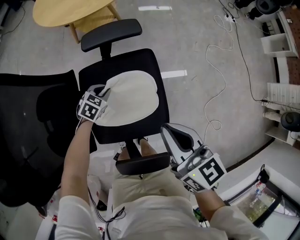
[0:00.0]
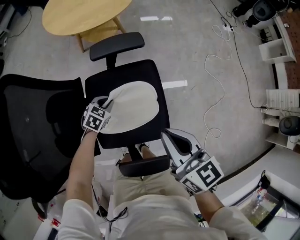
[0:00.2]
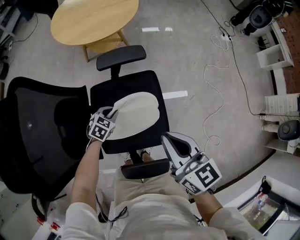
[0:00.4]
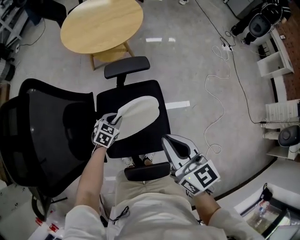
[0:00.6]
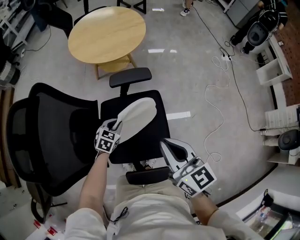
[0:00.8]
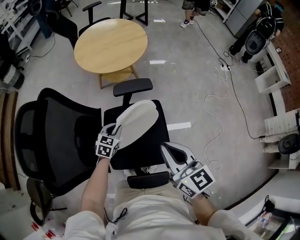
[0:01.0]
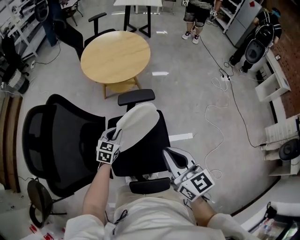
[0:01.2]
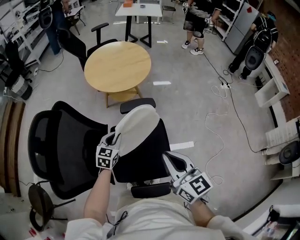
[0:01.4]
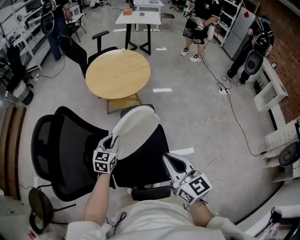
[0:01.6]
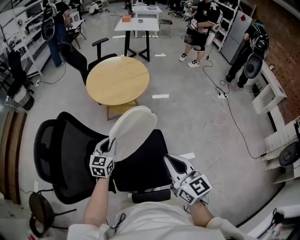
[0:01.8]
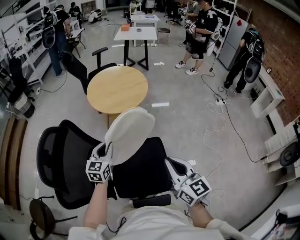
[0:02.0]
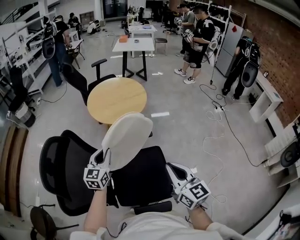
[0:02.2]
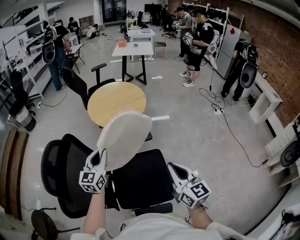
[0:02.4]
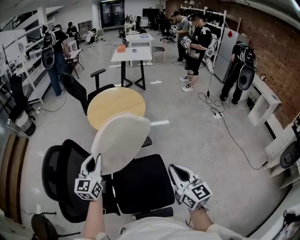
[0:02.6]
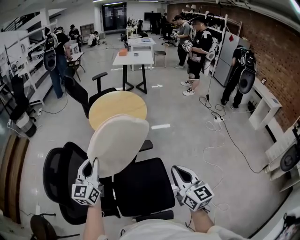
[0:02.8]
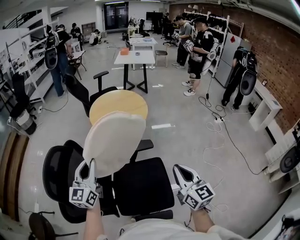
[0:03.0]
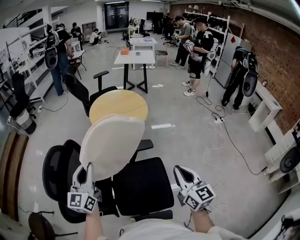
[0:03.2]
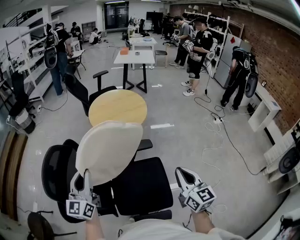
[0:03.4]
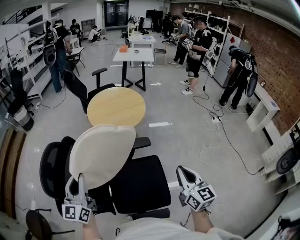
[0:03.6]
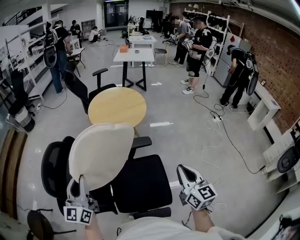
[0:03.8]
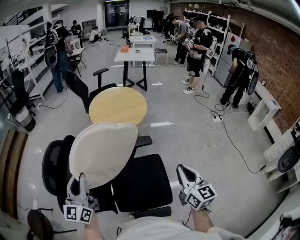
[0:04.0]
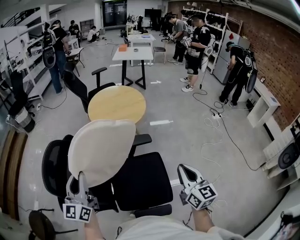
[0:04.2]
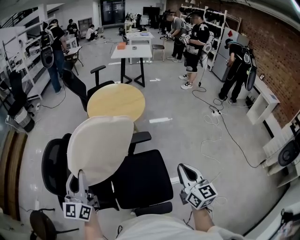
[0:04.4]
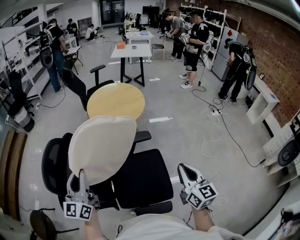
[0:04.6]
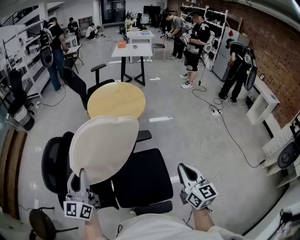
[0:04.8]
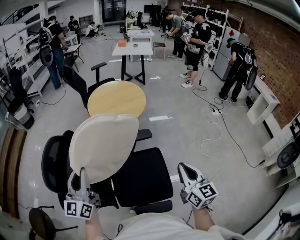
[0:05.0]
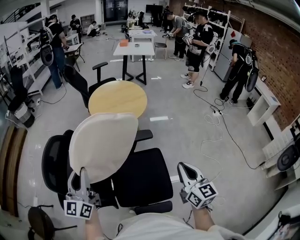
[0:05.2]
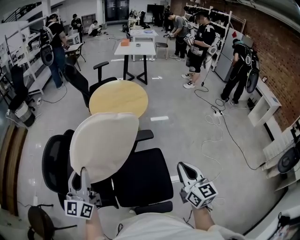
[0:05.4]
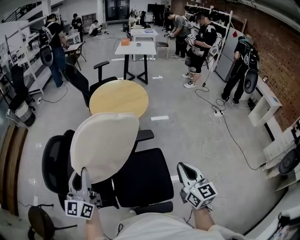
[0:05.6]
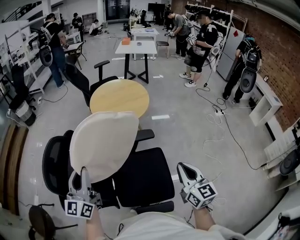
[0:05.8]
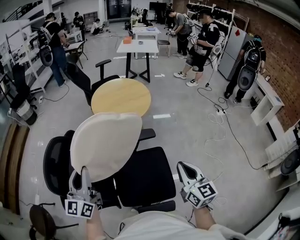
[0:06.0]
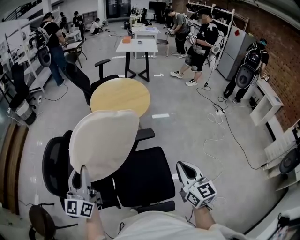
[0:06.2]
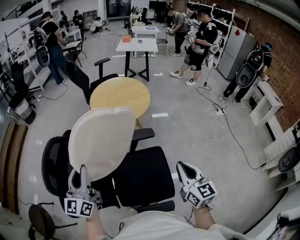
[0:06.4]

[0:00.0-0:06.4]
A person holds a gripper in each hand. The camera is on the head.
0:00.0 to 0:01.6: The right gripper shifts roughly 15 cm upward. The left gripper moves upward, some 30 cm, and angles its fingers upward, by roughly 30 degrees.
0:01.6 to 0:03.2: The left gripper travels upward and to the left by roughly 25 cm, and points its fingers approximately 30 degrees further upward. Meanwhile the right gripper goes about 5 cm to the right.
0:03.2 to 0:04.8: The left gripper heads backward, covering some 5 cm.
0:04.8 to 0:06.4: The grippers stay close to where they were, moving slightly.

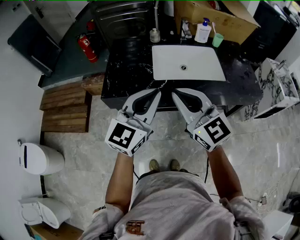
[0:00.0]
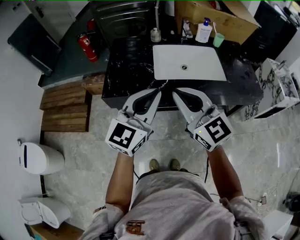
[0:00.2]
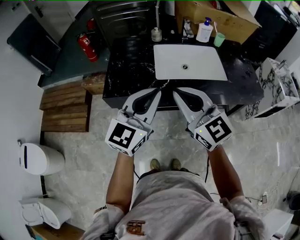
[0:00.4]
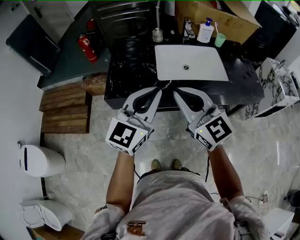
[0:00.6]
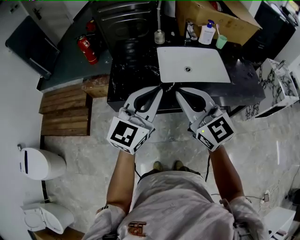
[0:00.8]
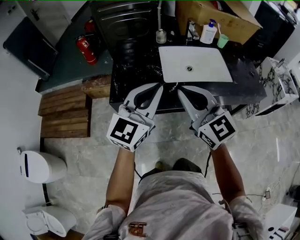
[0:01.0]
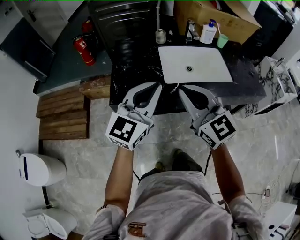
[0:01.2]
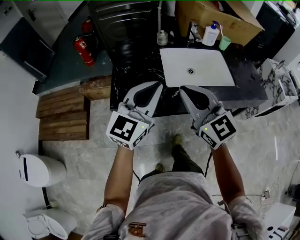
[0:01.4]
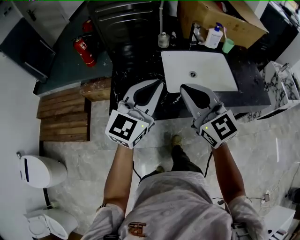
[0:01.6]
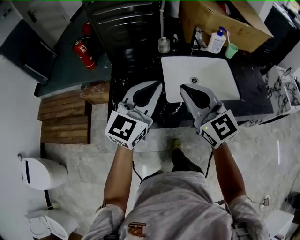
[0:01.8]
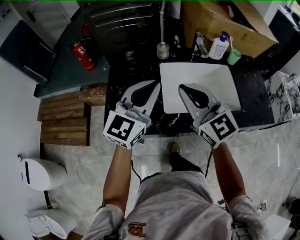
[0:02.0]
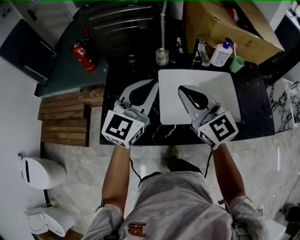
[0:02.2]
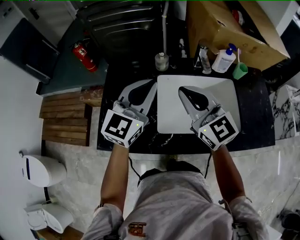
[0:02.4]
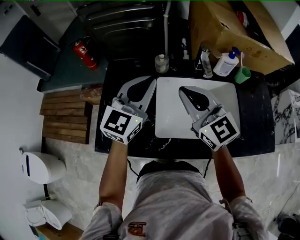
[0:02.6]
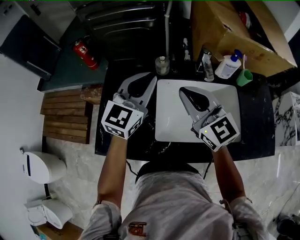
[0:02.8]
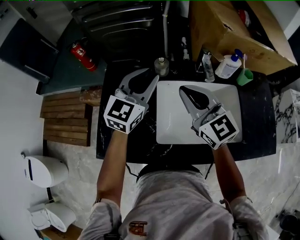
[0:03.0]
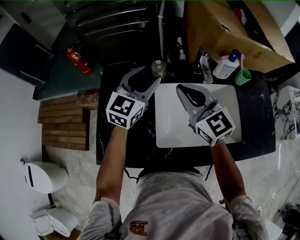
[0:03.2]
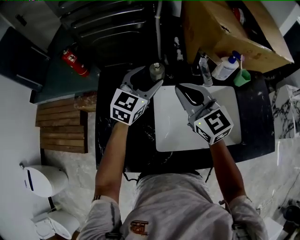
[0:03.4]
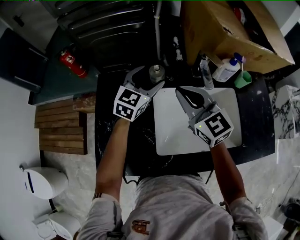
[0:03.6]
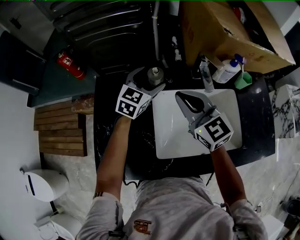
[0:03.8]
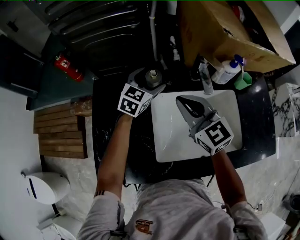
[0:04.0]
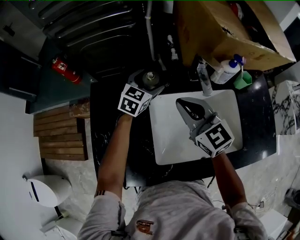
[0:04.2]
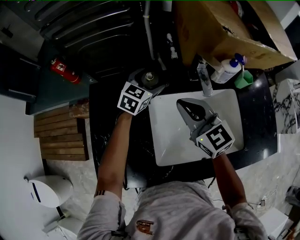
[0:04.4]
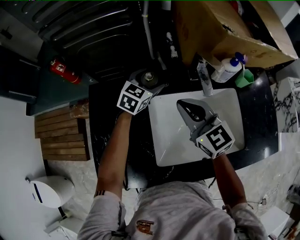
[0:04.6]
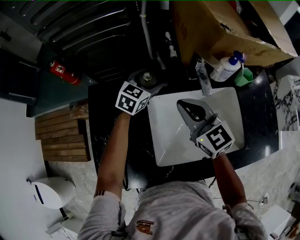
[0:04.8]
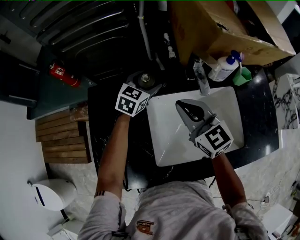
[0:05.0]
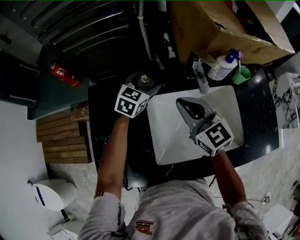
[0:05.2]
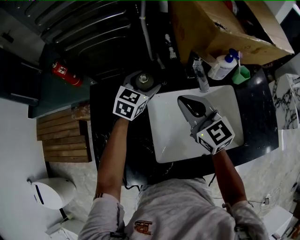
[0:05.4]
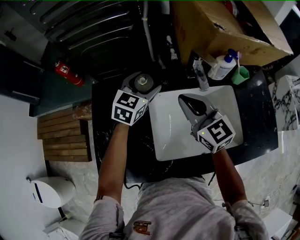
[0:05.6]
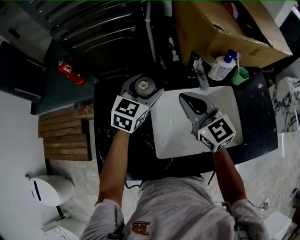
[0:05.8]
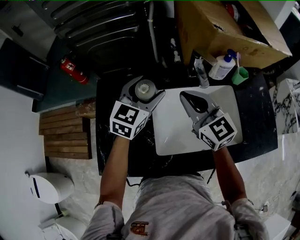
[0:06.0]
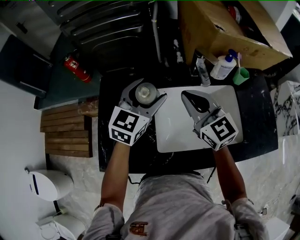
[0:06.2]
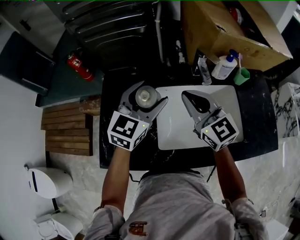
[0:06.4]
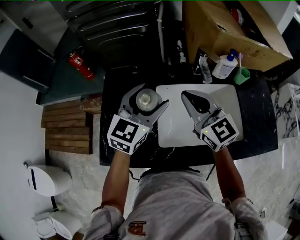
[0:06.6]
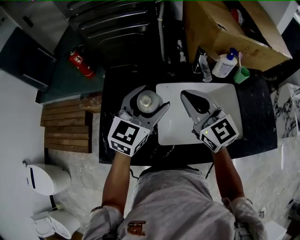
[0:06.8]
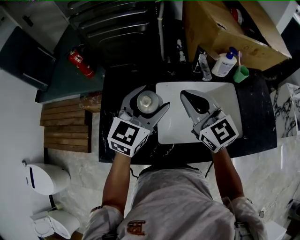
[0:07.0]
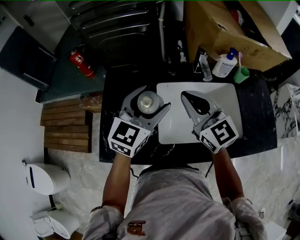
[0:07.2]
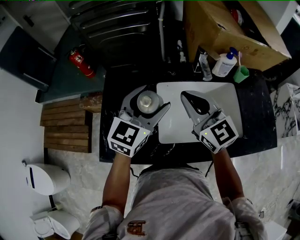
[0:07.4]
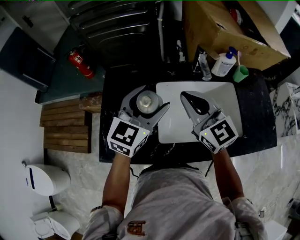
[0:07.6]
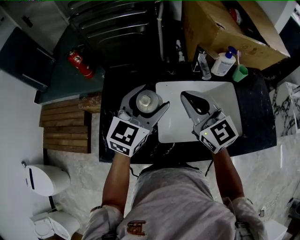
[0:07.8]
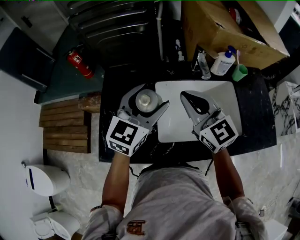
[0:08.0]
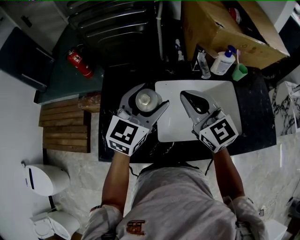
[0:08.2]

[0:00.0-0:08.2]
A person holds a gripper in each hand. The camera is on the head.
0:00.0 to 0:01.6: Both grippers travel together forward and to the left, about 15 cm.
0:01.6 to 0:03.2: Both grippers travel together forward, some 30 cm. The left gripper opens.
0:03.2 to 0:05.0: The left gripper moves downward and forward, some 20 cm, and swivels roughly 20 degrees. Meanwhile the right gripper travels downward by some 5 cm.
0:05.0 to 0:06.6: The right gripper heads backward and upward, covering approximately 10 cm; the left gripper goes roughly 25 cm backward and upward.
0:06.6 to 0:08.2: The grippers make only small movements.

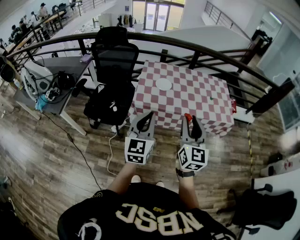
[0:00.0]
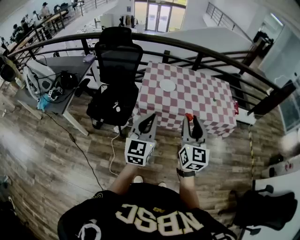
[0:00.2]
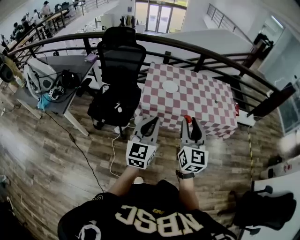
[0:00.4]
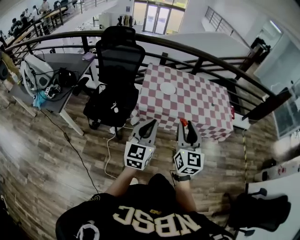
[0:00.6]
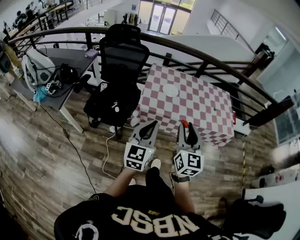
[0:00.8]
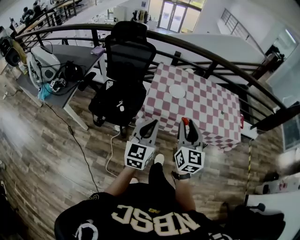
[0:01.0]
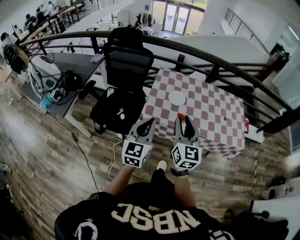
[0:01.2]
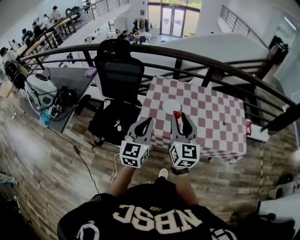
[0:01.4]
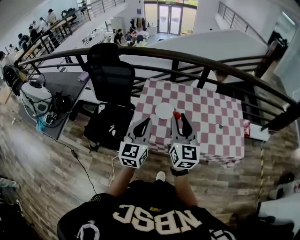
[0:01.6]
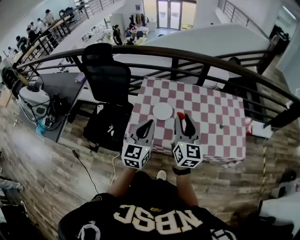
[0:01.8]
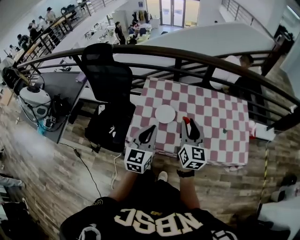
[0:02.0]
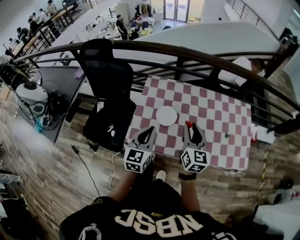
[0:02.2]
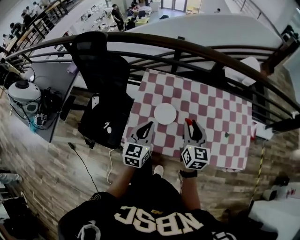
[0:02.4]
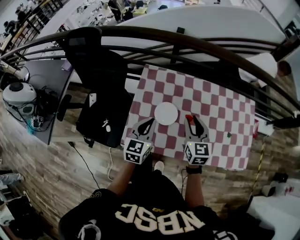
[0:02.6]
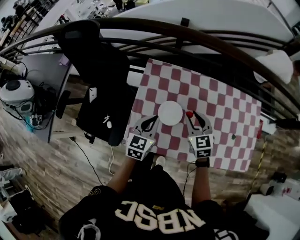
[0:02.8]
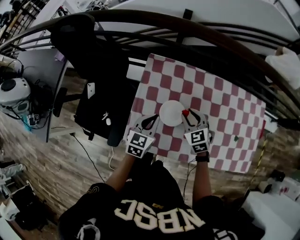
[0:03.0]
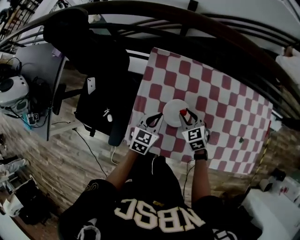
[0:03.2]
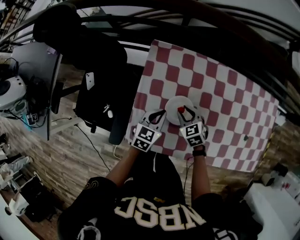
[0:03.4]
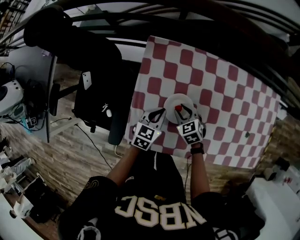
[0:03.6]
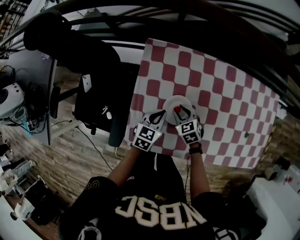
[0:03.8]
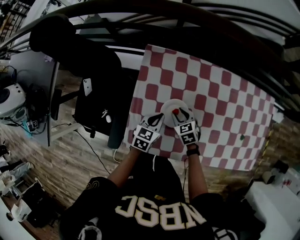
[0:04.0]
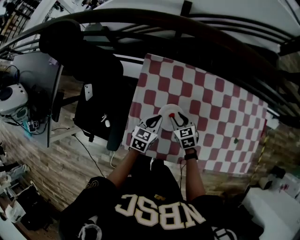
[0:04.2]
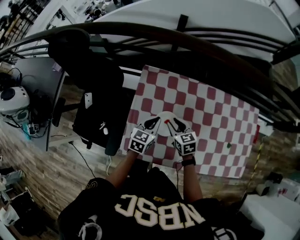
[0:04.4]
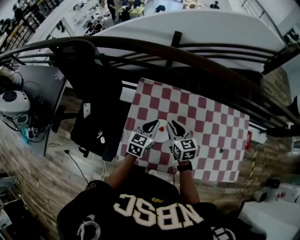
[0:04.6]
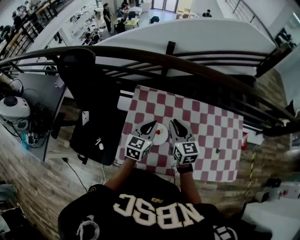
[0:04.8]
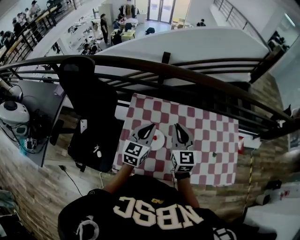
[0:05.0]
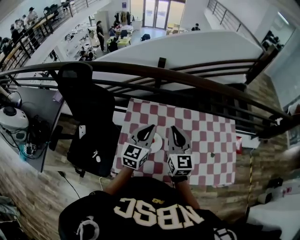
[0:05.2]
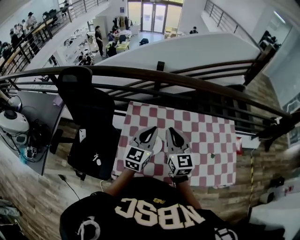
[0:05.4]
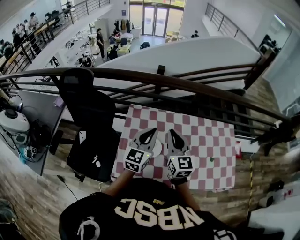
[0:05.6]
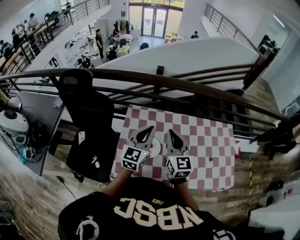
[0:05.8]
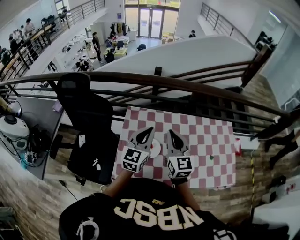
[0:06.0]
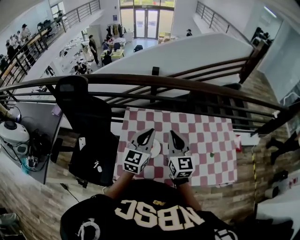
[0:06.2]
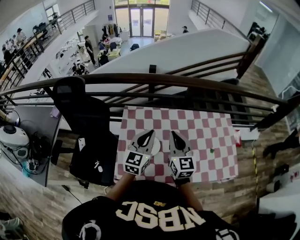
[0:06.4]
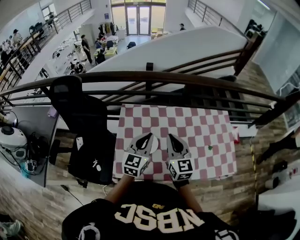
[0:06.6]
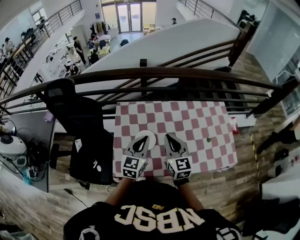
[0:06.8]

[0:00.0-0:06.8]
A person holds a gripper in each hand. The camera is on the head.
0:00.0 to 0:01.4: Both grippers travel together forward, roughly 20 cm.
0:01.4 to 0:02.8: The left gripper goes about 20 cm downward and forward, and turns by approximately 20 degrees, while the right gripper goes about 25 cm downward, forward and to the right, and angles its fingers downward, by some 30 degrees.
0:02.8 to 0:04.0: Both grippers travel together downward, roughly 15 cm. The right gripper swivels roughly 30 degrees.
0:04.0 to 0:05.4: The grippers both shift upward by about 30 cm. The left gripper tips its fingers upward by about 30 degrees. The right gripper tilts its fingers some 50 degrees upward, and closes.
0:05.4 to 0:06.8: The right gripper moves backward, roughly 5 cm. Meanwhile the left gripper travels downward by roughly 5 cm.

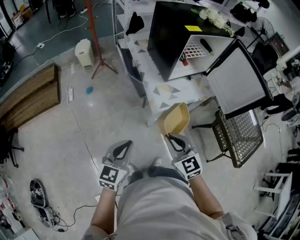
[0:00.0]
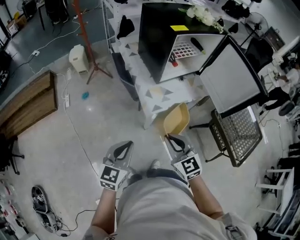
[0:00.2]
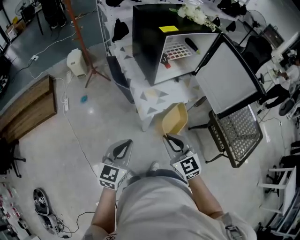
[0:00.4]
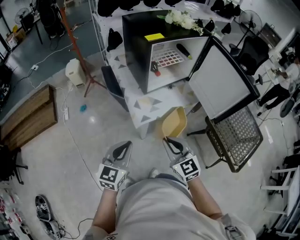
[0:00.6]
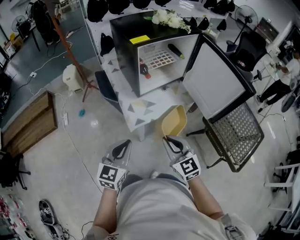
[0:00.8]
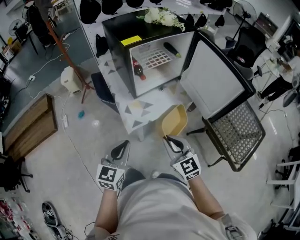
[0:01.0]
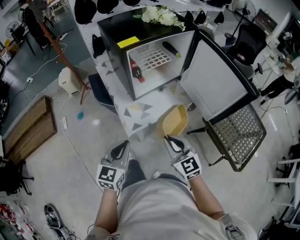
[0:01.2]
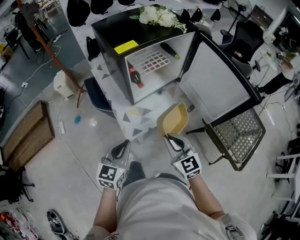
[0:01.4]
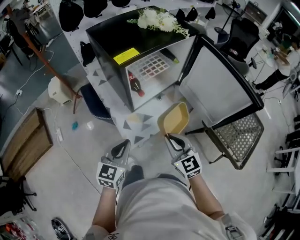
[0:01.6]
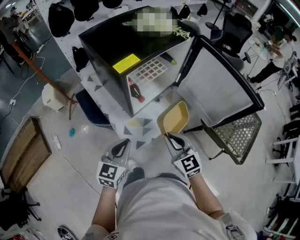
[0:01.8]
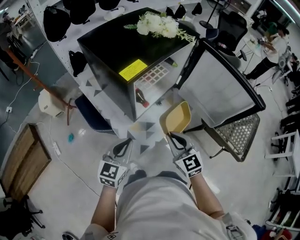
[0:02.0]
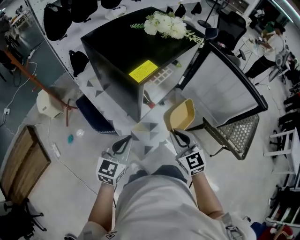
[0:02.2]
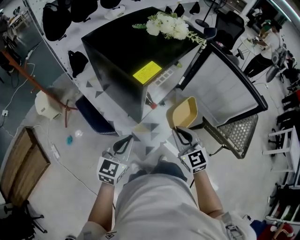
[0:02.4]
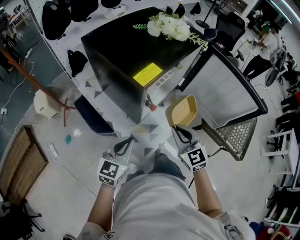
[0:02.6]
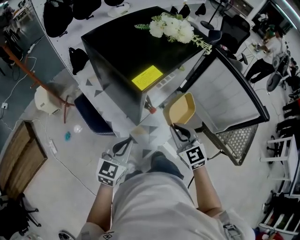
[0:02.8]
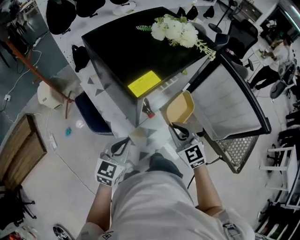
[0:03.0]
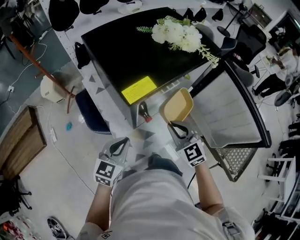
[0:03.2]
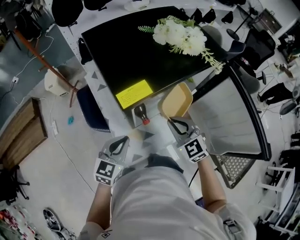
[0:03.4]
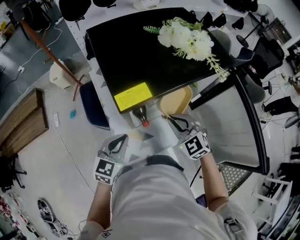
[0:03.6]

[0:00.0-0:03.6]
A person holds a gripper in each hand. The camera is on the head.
0:00.0 to 0:01.8: Both grippers move forward and to the right, about 30 cm.
0:01.8 to 0:03.6: The right gripper moves approximately 20 cm, and rotates about 40 degrees; the left gripper ends up some 15 cm from where it was.
